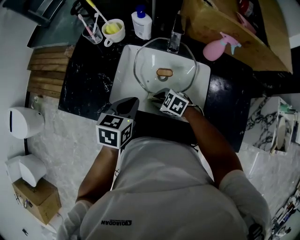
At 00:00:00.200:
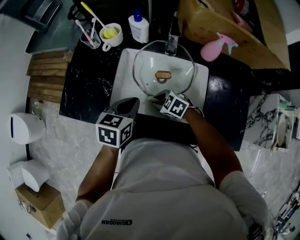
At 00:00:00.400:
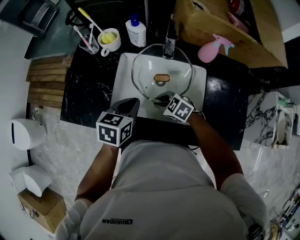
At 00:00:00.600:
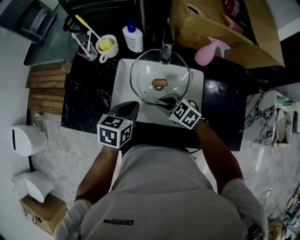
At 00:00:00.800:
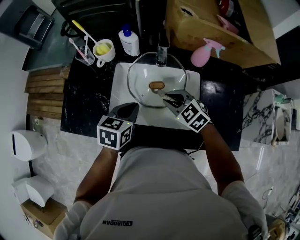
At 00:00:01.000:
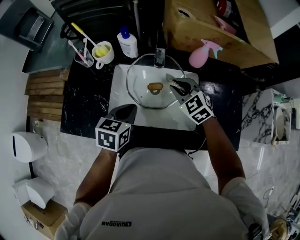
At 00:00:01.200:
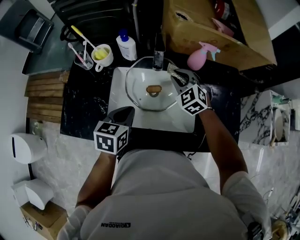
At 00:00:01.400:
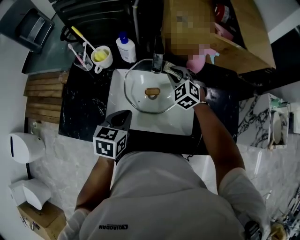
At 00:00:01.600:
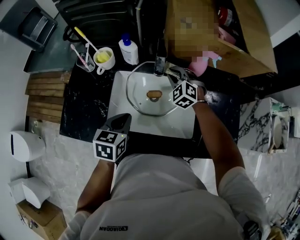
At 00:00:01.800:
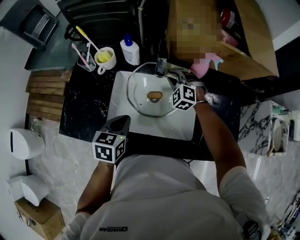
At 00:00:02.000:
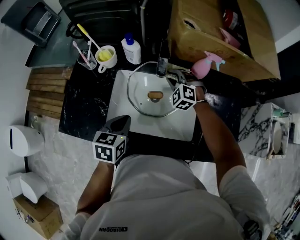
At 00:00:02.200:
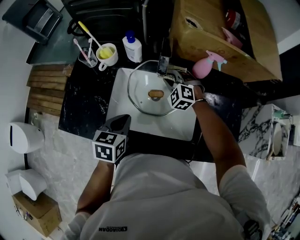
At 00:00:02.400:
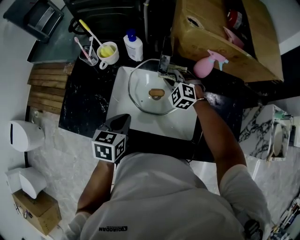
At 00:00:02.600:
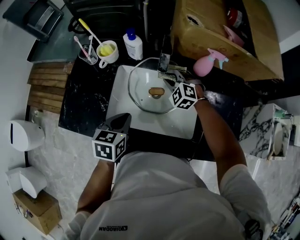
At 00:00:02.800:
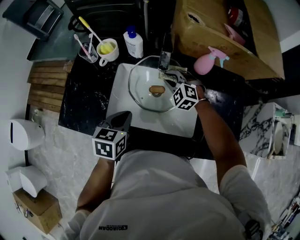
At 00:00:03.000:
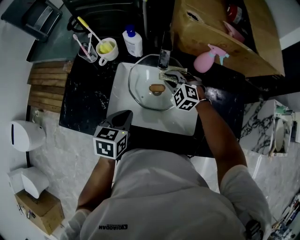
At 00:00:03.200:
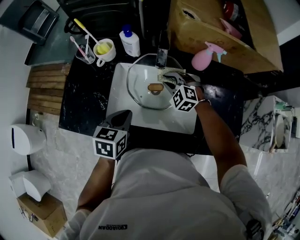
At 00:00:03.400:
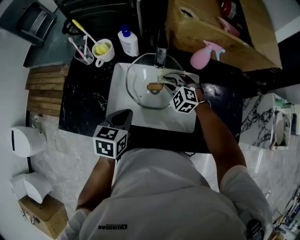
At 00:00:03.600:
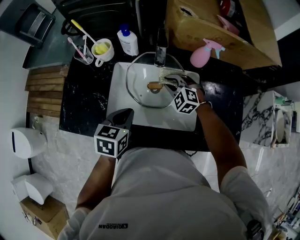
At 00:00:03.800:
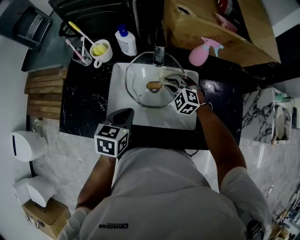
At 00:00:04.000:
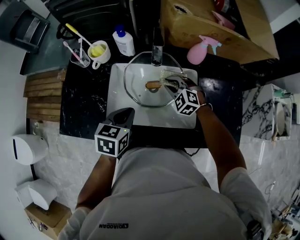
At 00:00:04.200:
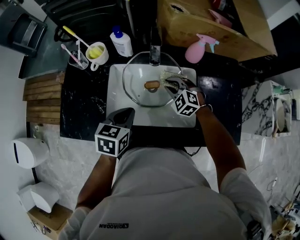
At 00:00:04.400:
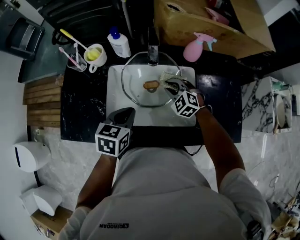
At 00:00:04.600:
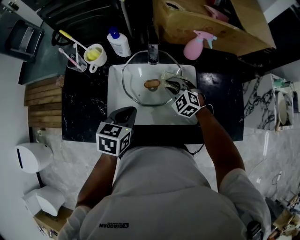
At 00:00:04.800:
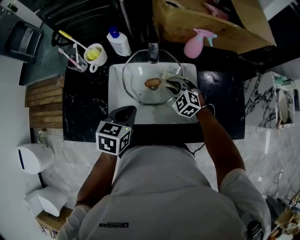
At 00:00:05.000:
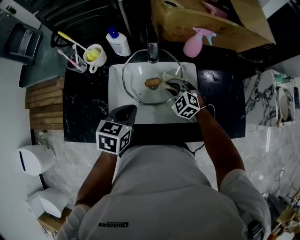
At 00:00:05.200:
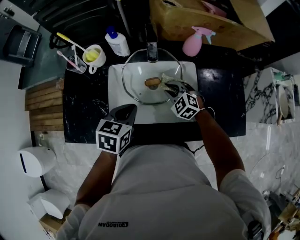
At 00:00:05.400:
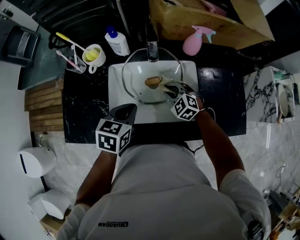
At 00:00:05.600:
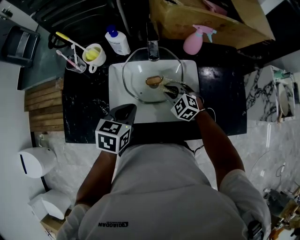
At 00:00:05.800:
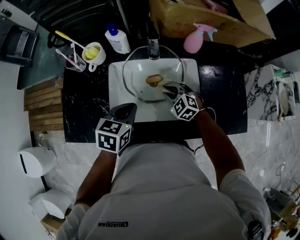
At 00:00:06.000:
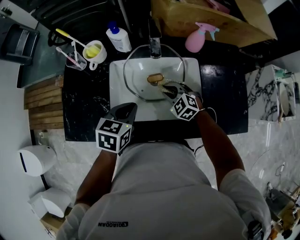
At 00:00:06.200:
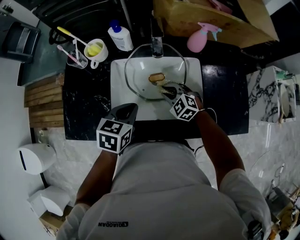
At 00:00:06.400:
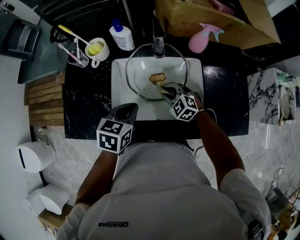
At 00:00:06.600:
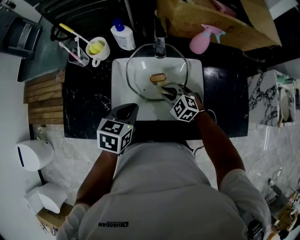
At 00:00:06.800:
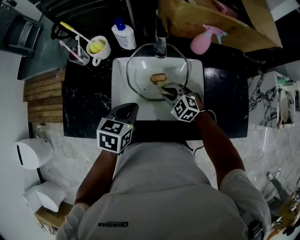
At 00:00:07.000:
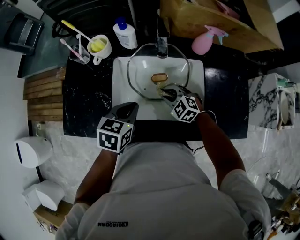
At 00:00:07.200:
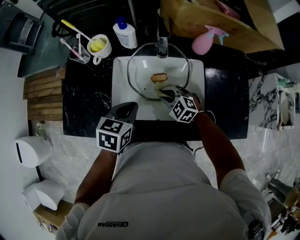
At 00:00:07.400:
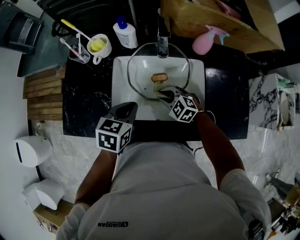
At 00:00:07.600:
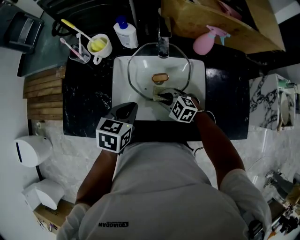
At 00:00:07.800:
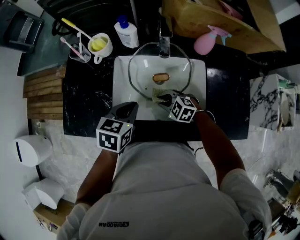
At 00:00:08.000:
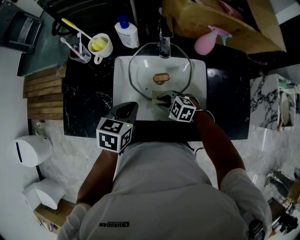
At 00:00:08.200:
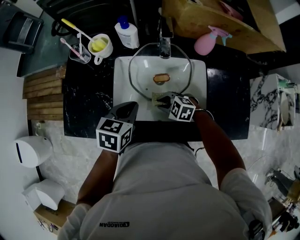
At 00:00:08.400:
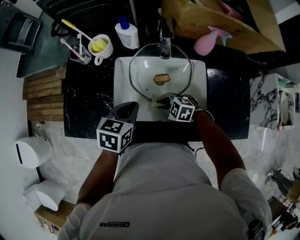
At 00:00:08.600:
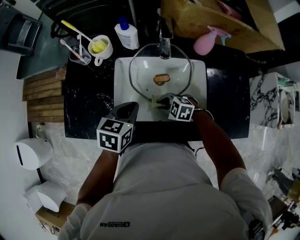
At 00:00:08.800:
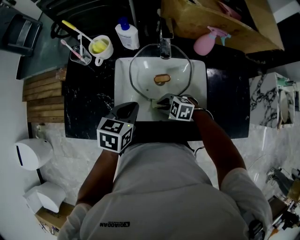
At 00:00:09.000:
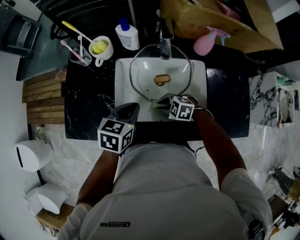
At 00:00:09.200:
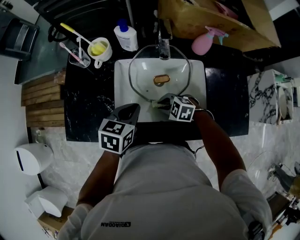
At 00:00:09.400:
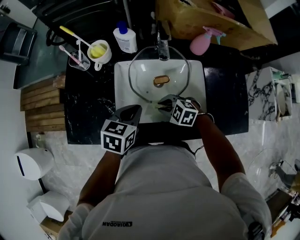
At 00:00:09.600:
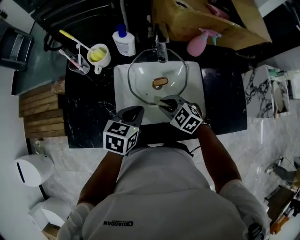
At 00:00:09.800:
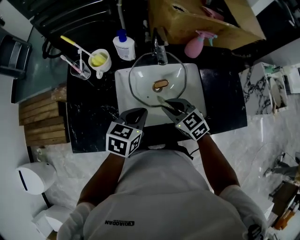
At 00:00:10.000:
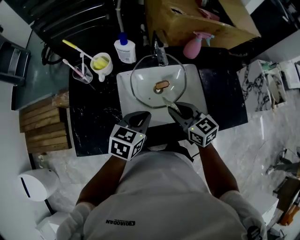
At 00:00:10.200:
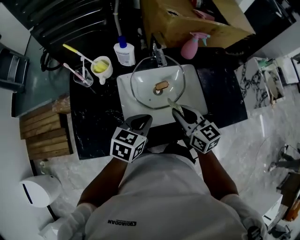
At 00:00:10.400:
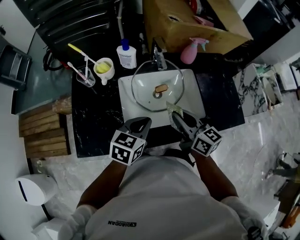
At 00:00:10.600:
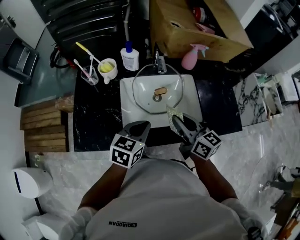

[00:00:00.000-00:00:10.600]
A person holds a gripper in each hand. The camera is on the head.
00:00:00.000 to 00:00:01.600: The right gripper changes place by approximately 30 cm, and turns by roughly 50 degrees.
00:00:01.600 to 00:00:03.000: The right gripper moves approximately 5 cm.
00:00:03.000 to 00:00:04.600: The right gripper is displaced backward by approximately 5 cm.
00:00:04.600 to 00:00:06.000: The right gripper moves some 5 cm.
00:00:06.000 to 00:00:07.600: The right gripper changes place by roughly 5 cm.
00:00:07.600 to 00:00:09.000: There are only small adjustments of the grippers.
00:00:09.000 to 00:00:10.600: The left gripper ends up about 10 cm from where it was; the right gripper is displaced upward by about 25 cm, and points its fingers about 50 degrees further upward.

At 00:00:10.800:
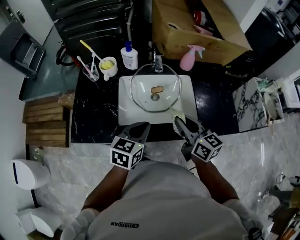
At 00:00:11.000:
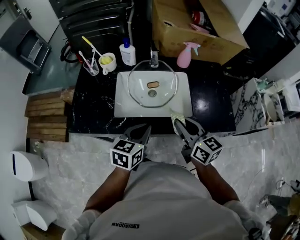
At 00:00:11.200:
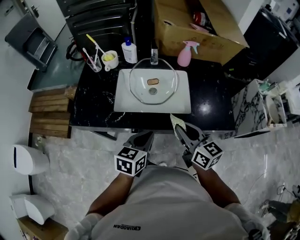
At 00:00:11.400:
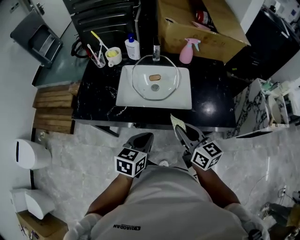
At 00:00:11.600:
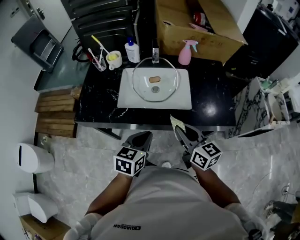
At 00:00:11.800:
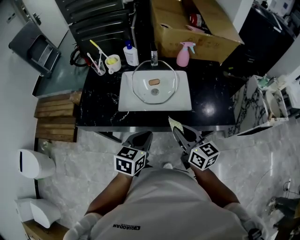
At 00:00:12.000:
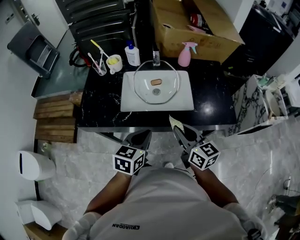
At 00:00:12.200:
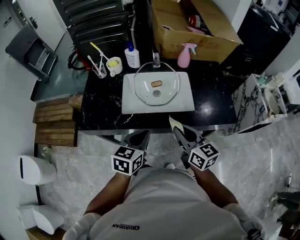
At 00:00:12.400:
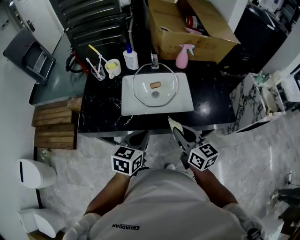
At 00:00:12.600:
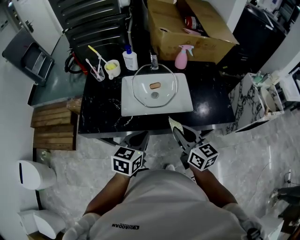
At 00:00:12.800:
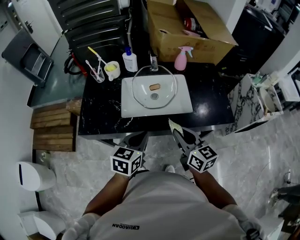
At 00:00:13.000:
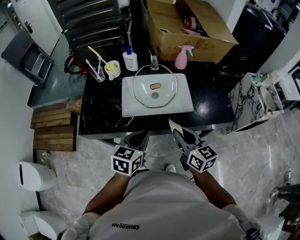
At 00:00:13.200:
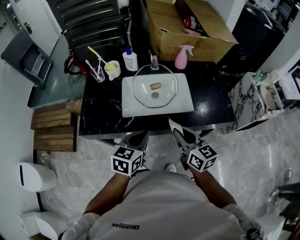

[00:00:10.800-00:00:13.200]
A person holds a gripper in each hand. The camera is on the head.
00:00:10.800 to 00:00:12.000: Both grippers travel together backward, approximately 15 cm.
00:00:12.000 to 00:00:13.200: The grippers stay close to where they were, moving slightly.

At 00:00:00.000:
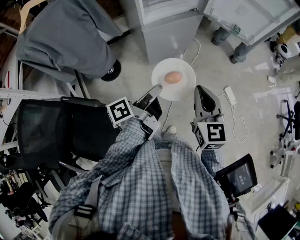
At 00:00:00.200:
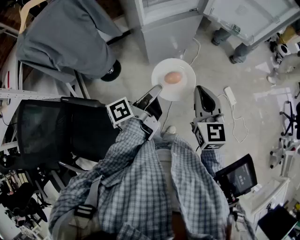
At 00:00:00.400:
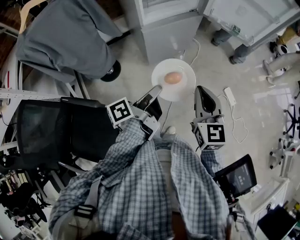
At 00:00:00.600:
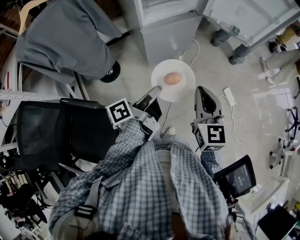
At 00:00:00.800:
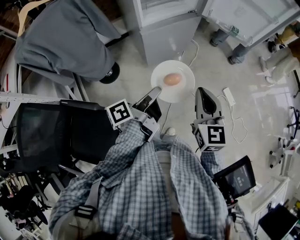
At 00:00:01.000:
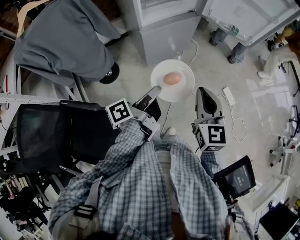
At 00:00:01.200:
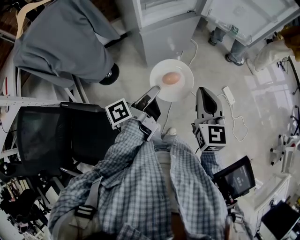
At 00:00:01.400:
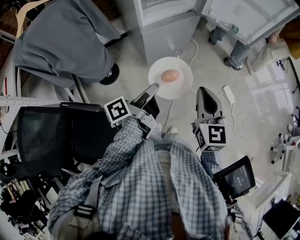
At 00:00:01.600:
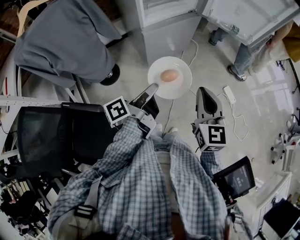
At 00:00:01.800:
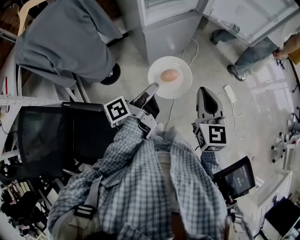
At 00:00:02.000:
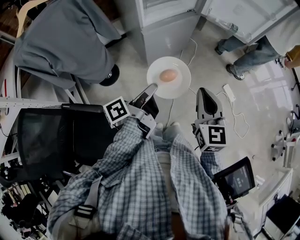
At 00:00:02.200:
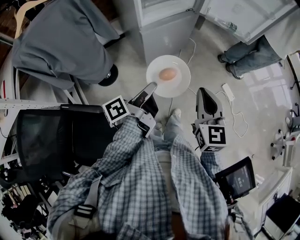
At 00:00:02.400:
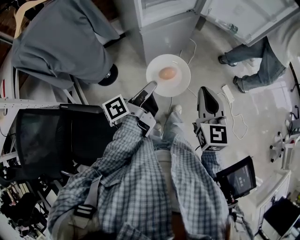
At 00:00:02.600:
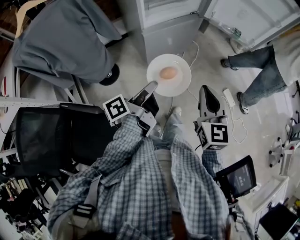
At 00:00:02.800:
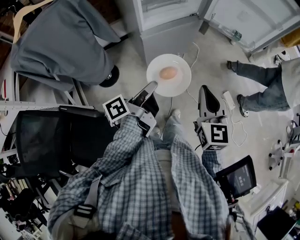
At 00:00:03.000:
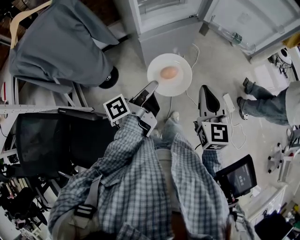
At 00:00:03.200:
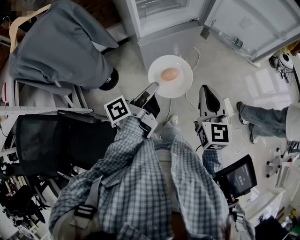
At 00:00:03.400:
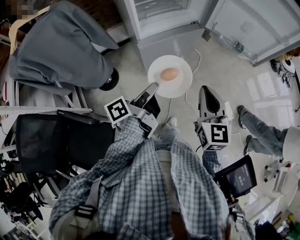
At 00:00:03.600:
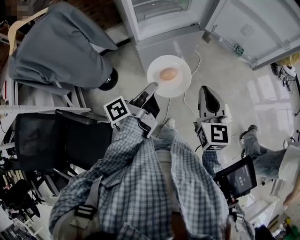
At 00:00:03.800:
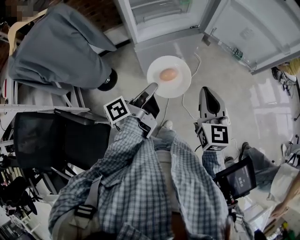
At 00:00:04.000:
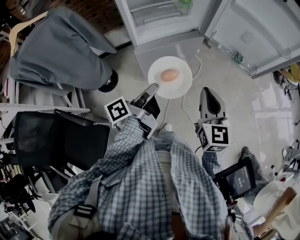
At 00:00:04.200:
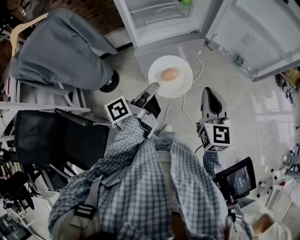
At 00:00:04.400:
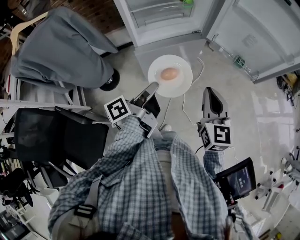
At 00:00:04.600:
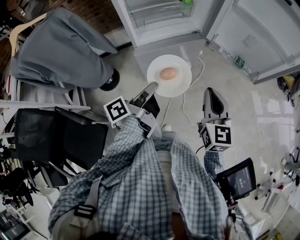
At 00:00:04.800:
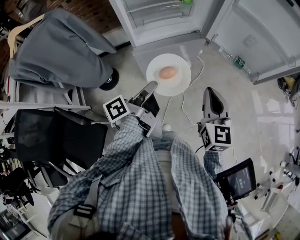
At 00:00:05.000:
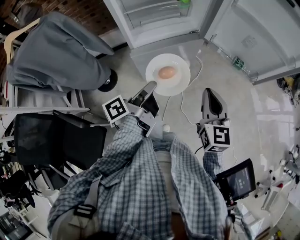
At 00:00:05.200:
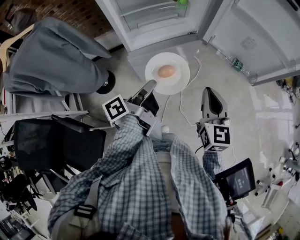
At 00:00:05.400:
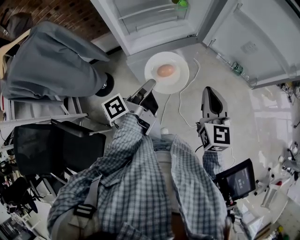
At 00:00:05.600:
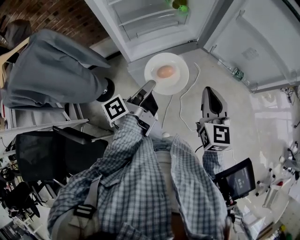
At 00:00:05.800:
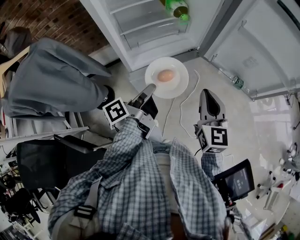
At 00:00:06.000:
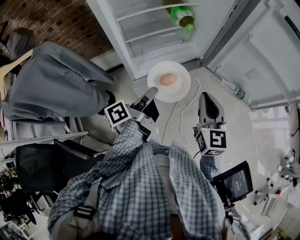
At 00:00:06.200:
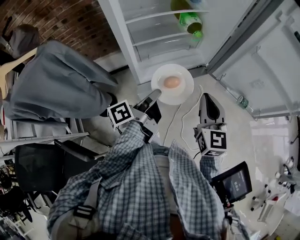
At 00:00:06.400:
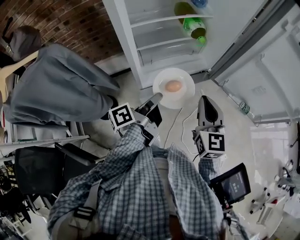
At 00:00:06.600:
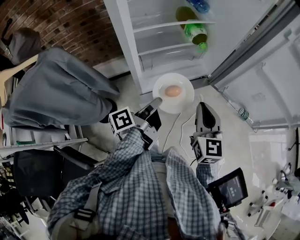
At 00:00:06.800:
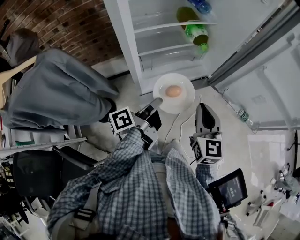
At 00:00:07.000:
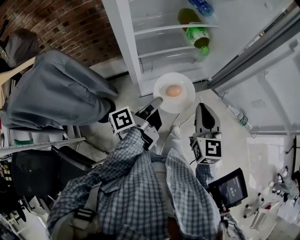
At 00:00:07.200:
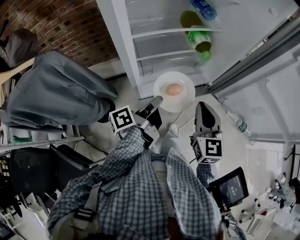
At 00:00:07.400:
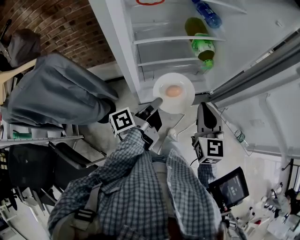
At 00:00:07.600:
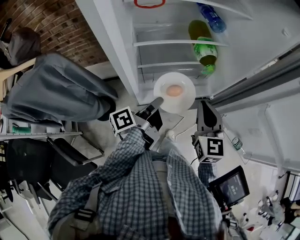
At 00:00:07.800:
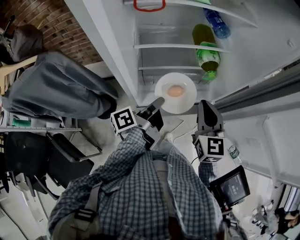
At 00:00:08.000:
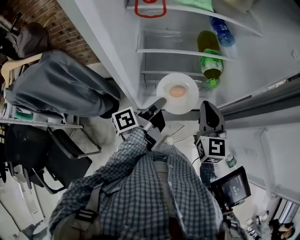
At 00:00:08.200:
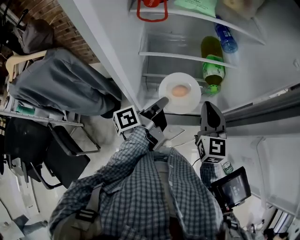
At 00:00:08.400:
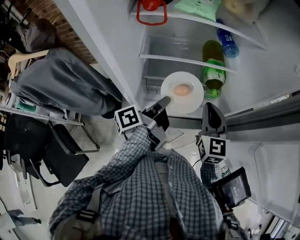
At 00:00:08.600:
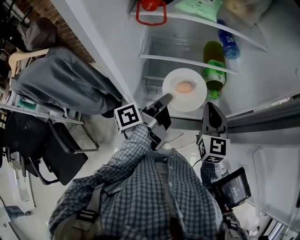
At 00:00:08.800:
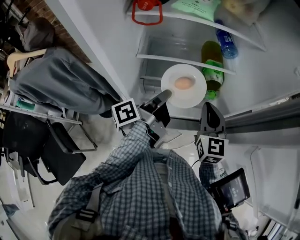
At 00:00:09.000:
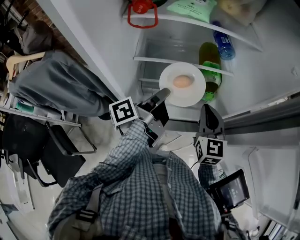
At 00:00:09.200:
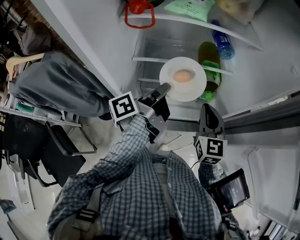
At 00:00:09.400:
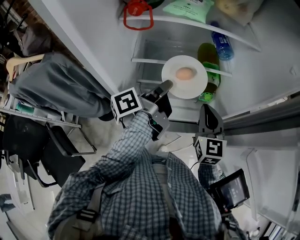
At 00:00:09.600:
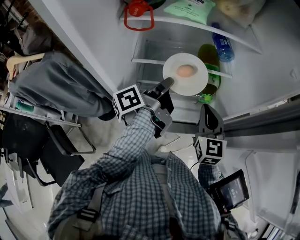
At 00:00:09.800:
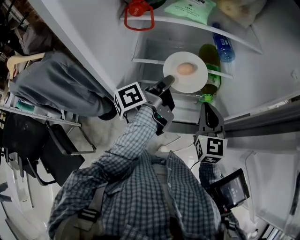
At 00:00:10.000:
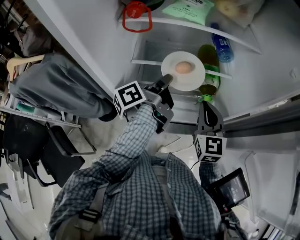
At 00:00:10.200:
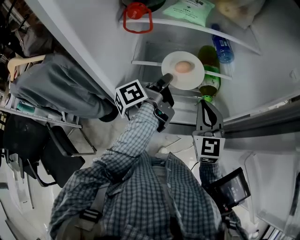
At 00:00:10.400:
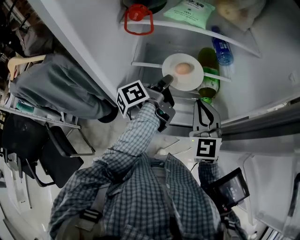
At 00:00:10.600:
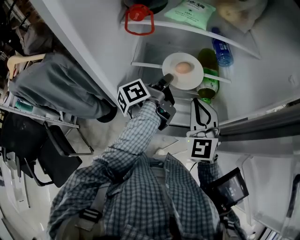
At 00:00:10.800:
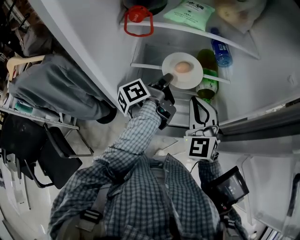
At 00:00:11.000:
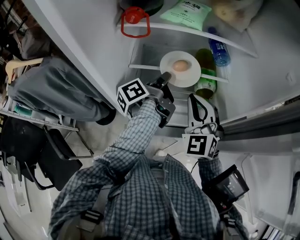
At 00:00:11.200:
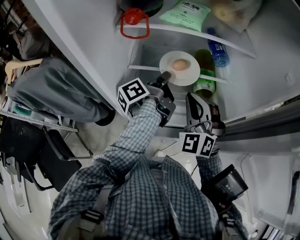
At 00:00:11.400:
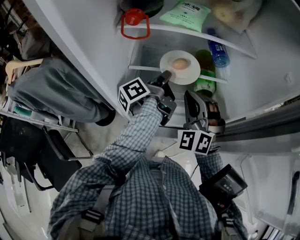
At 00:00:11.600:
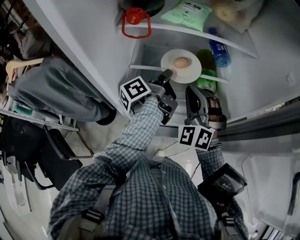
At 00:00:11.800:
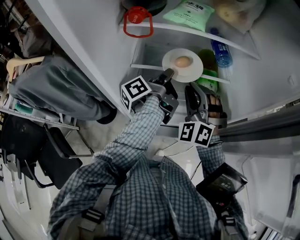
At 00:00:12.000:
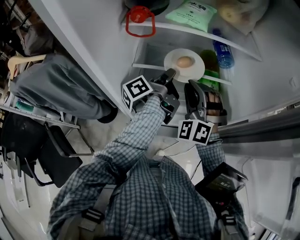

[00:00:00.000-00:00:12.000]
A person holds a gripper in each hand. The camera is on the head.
00:00:01.600 to 00:00:03.000: The right gripper moves approximately 10 cm.
00:00:03.000 to 00:00:04.400: The right gripper ends up some 15 cm from where it was.
00:00:04.400 to 00:00:06.000: The right gripper ends up approximately 20 cm from where it was.
00:00:06.000 to 00:00:07.600: The right gripper ends up roughly 20 cm from where it was.
00:00:07.600 to 00:00:09.000: The right gripper ends up approximately 10 cm from where it was.
00:00:09.000 to 00:00:10.400: The right gripper shifts by about 5 cm, and turns by roughly 20 degrees.
00:00:10.400 to 00:00:12.000: The right gripper shifts by some 5 cm, and rolls counterclockwise, seen from behind, by approximately 50 degrees.
